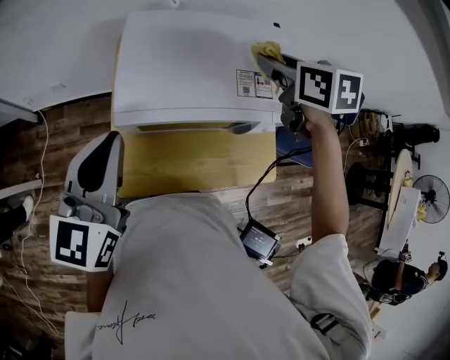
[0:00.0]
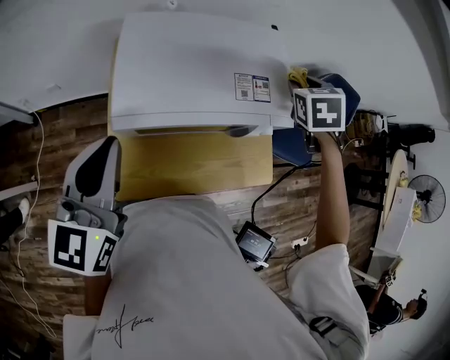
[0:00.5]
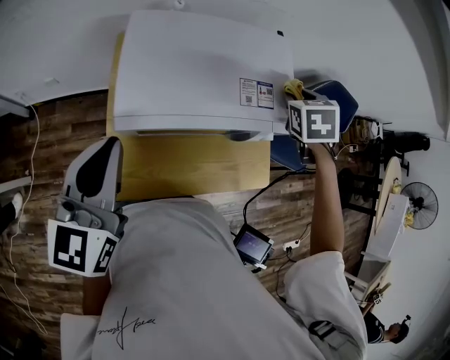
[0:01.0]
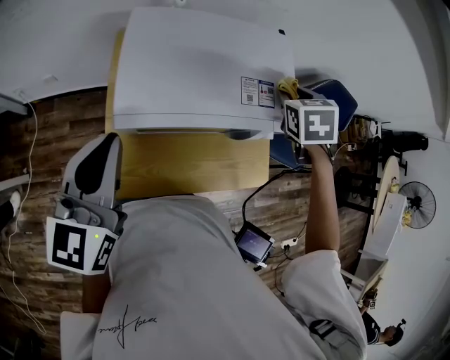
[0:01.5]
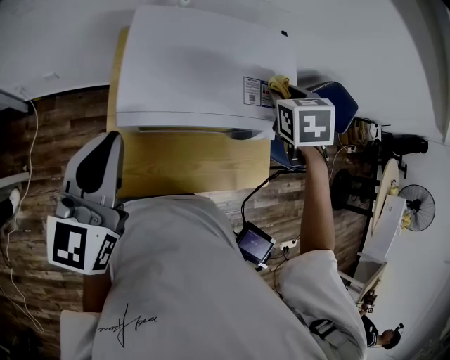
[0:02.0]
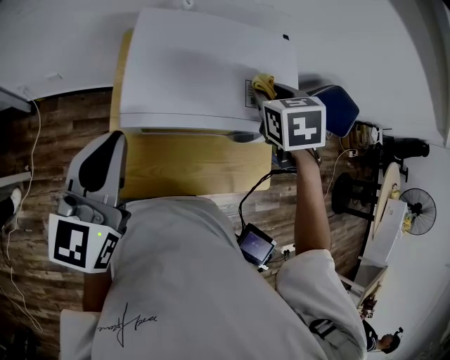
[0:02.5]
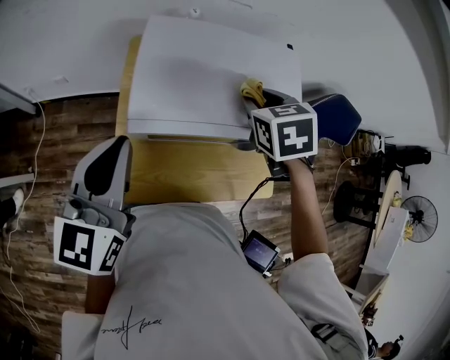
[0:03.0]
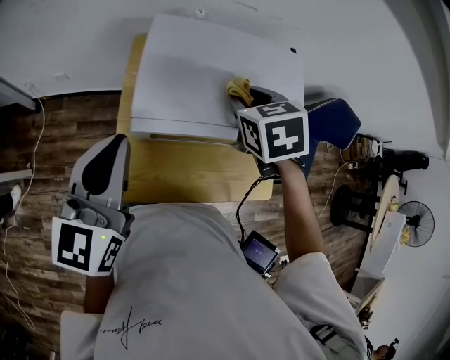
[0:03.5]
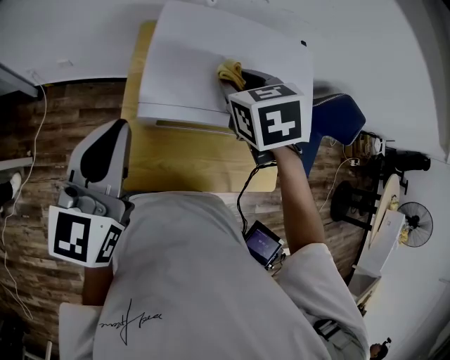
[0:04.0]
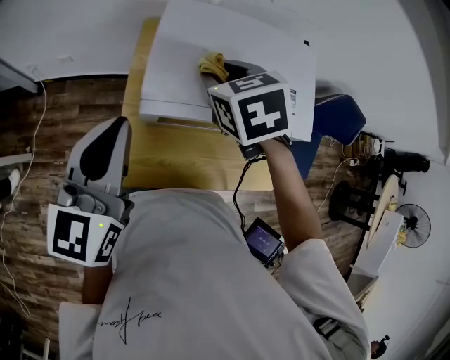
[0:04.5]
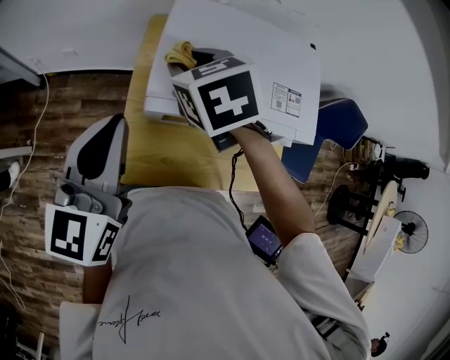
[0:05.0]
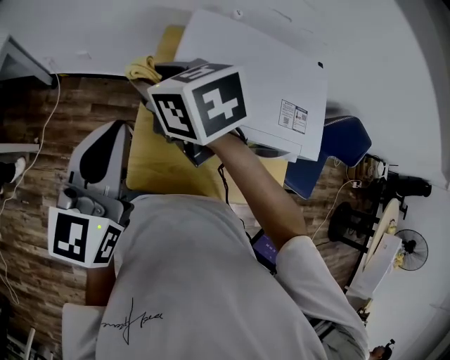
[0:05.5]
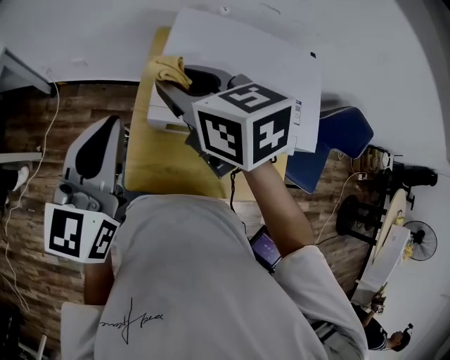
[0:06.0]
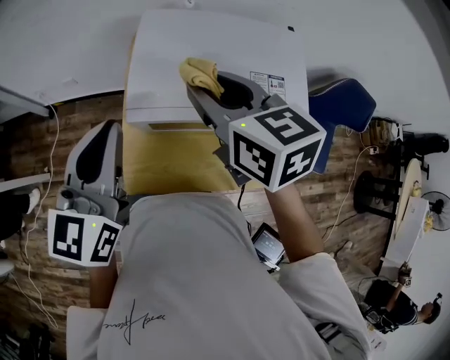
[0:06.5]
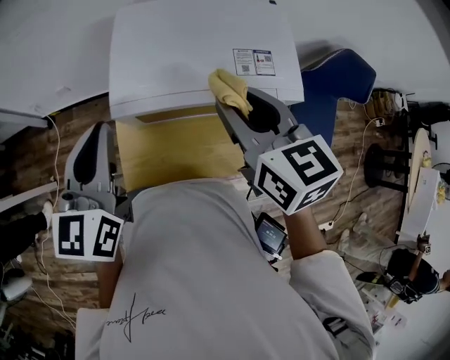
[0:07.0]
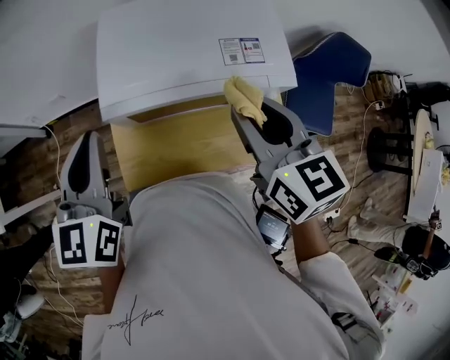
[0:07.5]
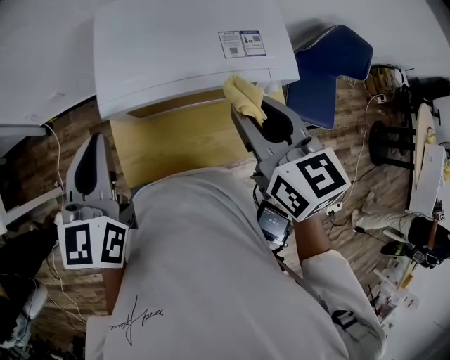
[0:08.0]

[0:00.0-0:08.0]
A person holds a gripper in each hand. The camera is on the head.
0.0 to 2.0 s: The right gripper is displaced downward and to the right by roughly 10 cm, and swivels roughly 30 degrees.
2.0 to 4.0 s: The right gripper heads to the left, covering some 20 cm.
4.0 to 6.0 s: The right gripper moves to the left, roughly 15 cm, and turns by approximately 30 degrees.
6.0 to 8.0 s: The right gripper goes approximately 25 cm to the right and backward, and changes its angle by roughly 30 degrees. Meanwhile the left gripper moves to the right, some 5 cm.

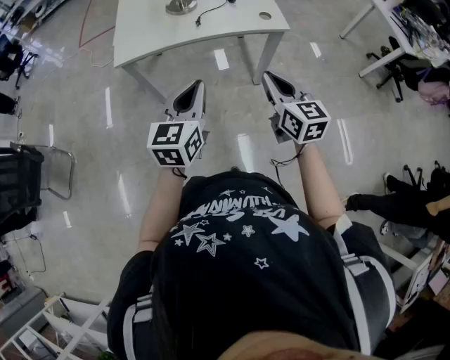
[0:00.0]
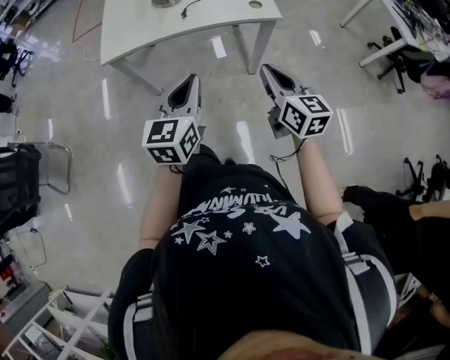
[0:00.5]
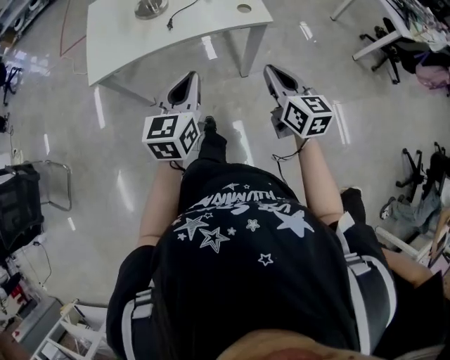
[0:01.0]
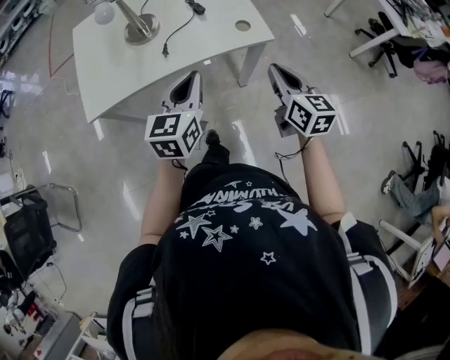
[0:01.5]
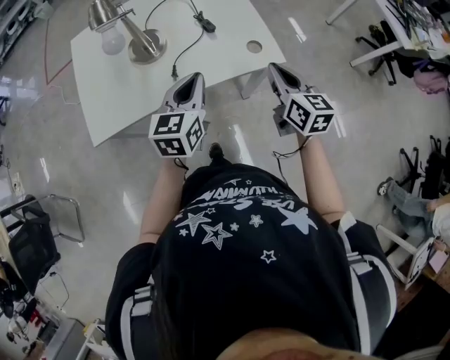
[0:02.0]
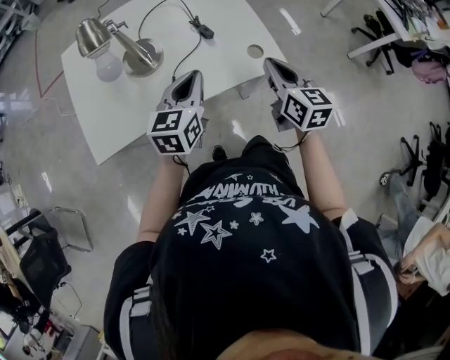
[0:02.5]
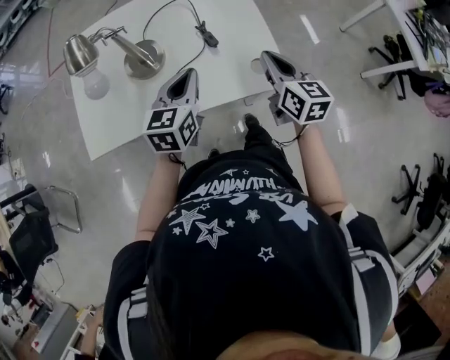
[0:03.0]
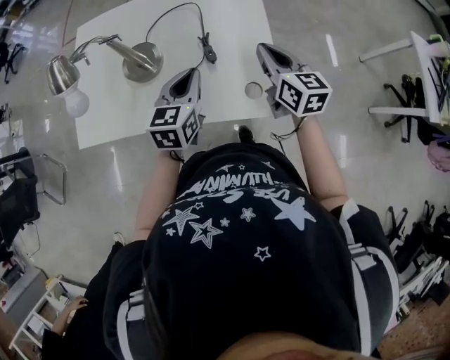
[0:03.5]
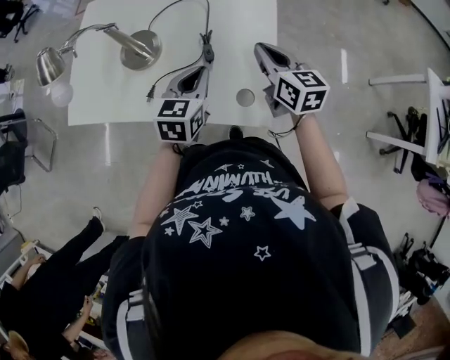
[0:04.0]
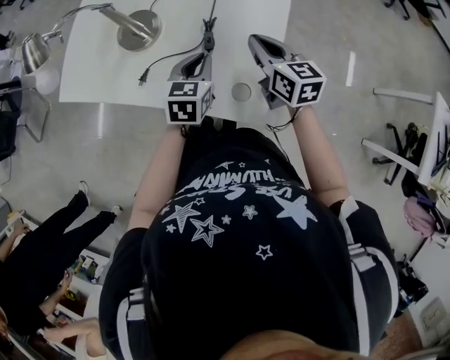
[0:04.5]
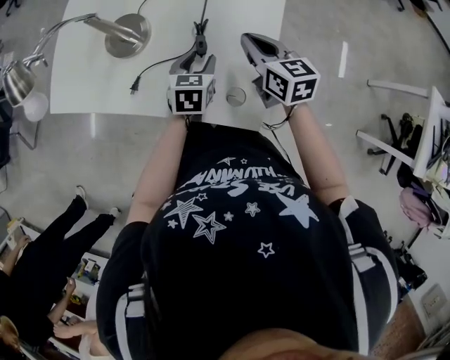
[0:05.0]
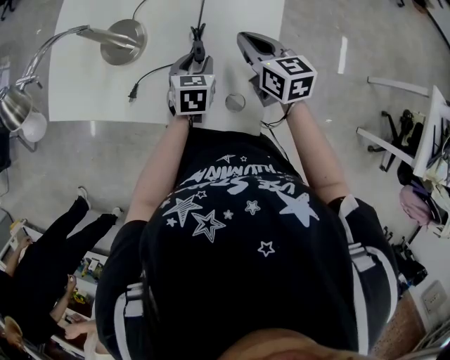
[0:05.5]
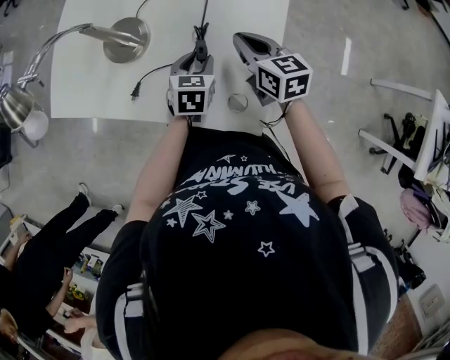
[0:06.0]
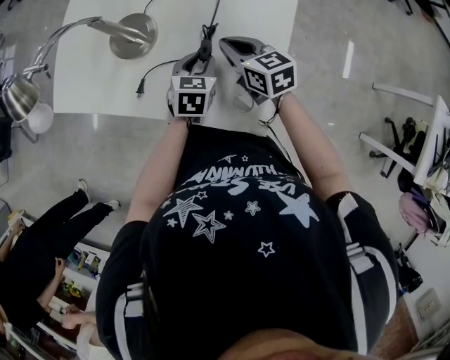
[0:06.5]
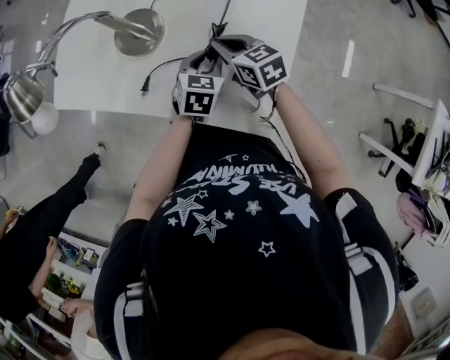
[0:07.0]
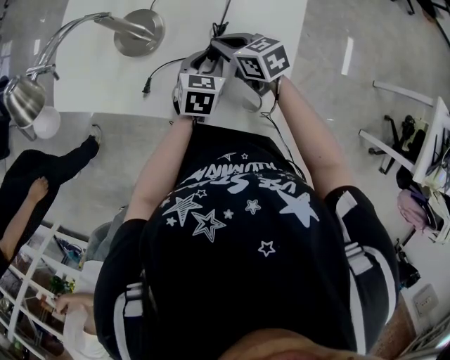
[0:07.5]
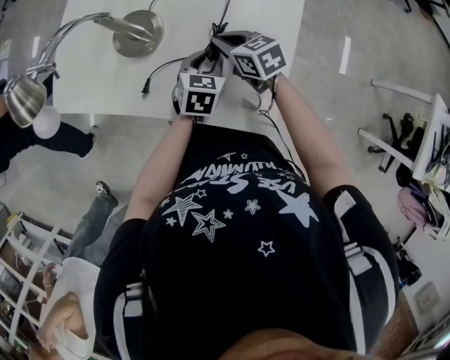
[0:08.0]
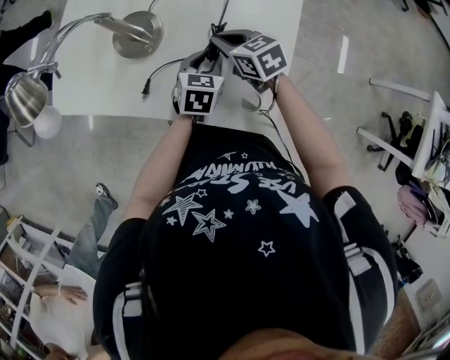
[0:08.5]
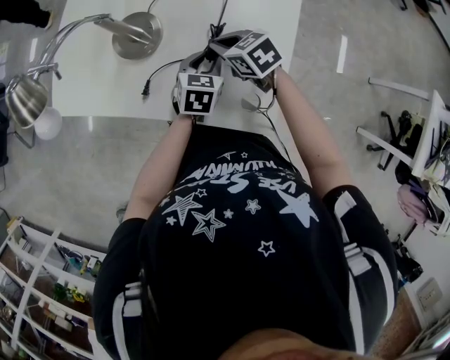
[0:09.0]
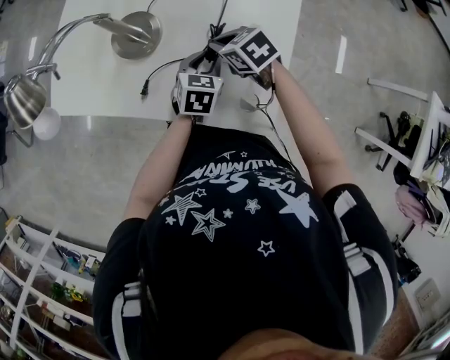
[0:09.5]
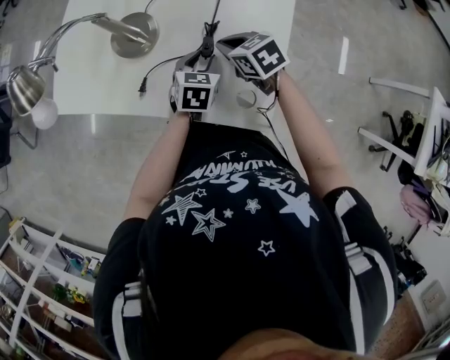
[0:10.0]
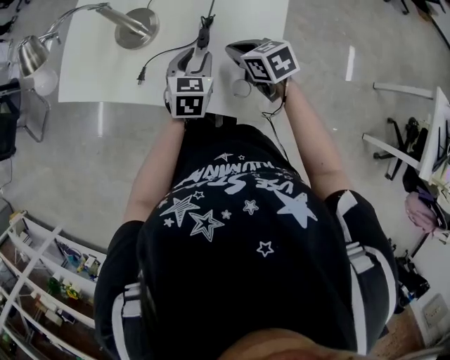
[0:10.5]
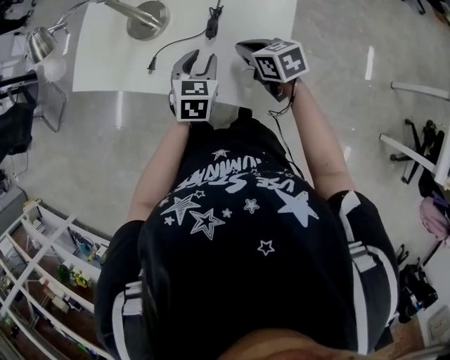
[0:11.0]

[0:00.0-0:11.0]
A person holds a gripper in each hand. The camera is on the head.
0.0 to 2.0 s: The two grippers go approximately 35 cm forward.
2.0 to 3.5 s: Both grippers travel together forward, roughly 20 cm.
3.5 to 5.5 s: The left gripper moves downward and forward, some 20 cm, turns by about 30 degrees, and opens its fingers; the right gripper heads forward and downward, covering roughly 15 cm, and swivels about 20 degrees.
5.5 to 7.5 s: The right gripper is displaced to the left and downward by some 15 cm, and changes its angle by some 20 degrees.
7.5 to 9.0 s: The grippers stay close to where they were, moving slightly.
9.0 to 11.0 s: The left gripper travels backward and upward by approximately 10 cm. Meanwhile the right gripper travels backward by about 10 cm.

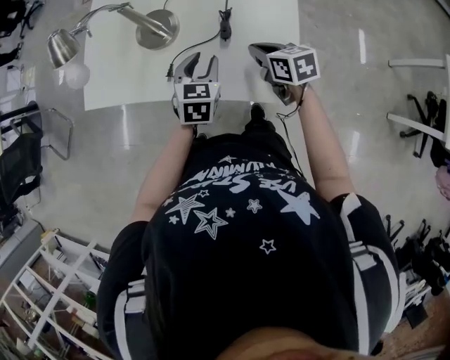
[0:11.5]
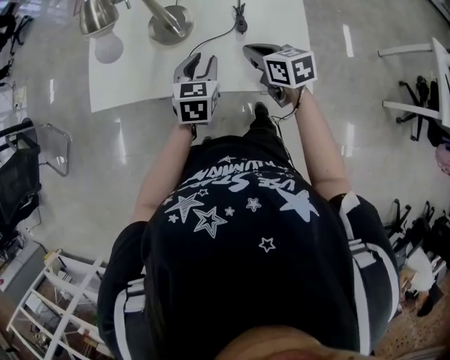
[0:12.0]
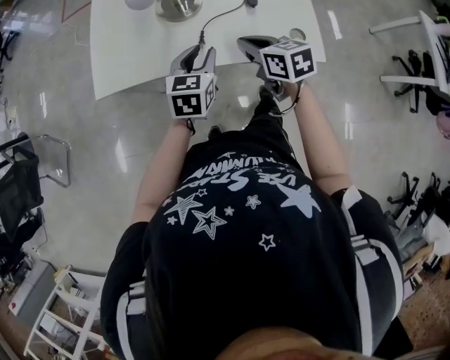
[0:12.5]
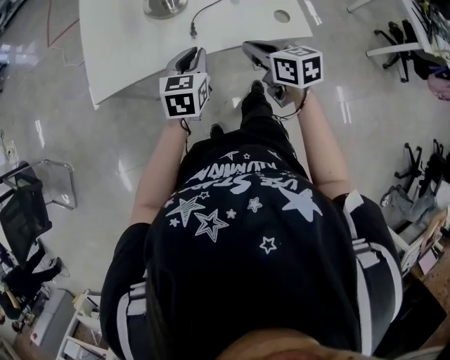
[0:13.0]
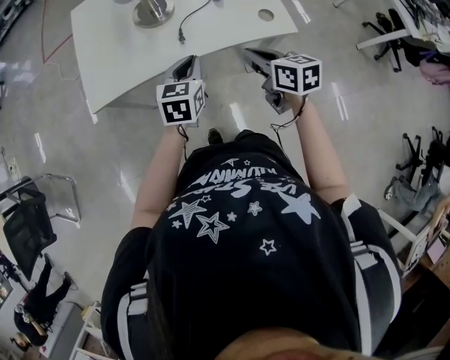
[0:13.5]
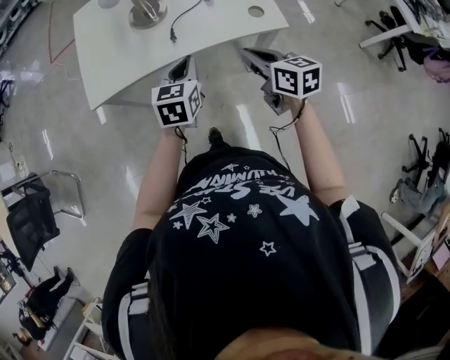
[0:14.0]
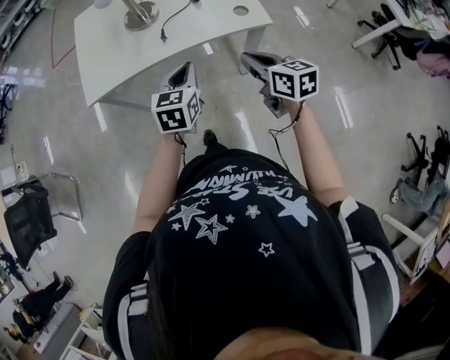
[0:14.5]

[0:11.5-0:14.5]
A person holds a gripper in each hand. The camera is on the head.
11.5 to 13.0 s: The two grippers go about 20 cm to the left and backward. The right gripper rotates approximately 20 degrees, while the left gripper changes its angle by about 20 degrees.
13.0 to 14.5 s: Both grippers move backward and to the right, some 15 cm.

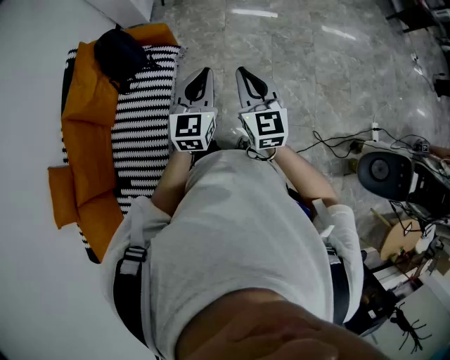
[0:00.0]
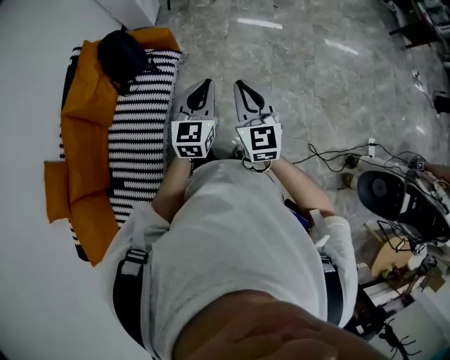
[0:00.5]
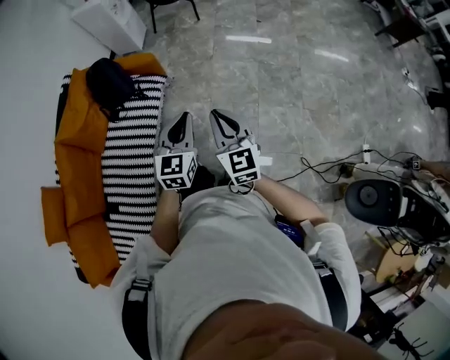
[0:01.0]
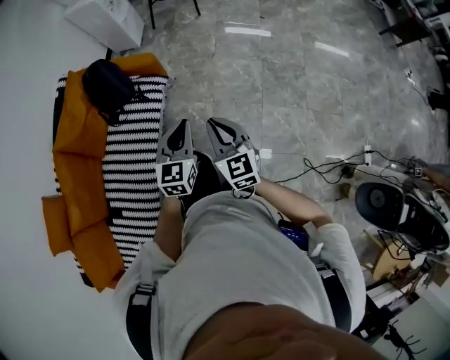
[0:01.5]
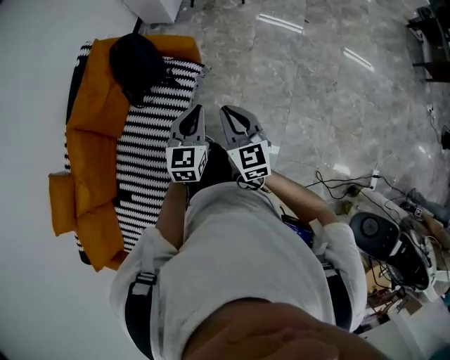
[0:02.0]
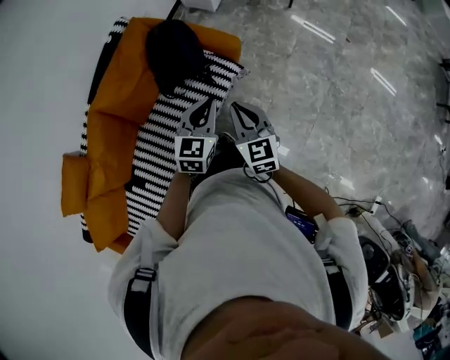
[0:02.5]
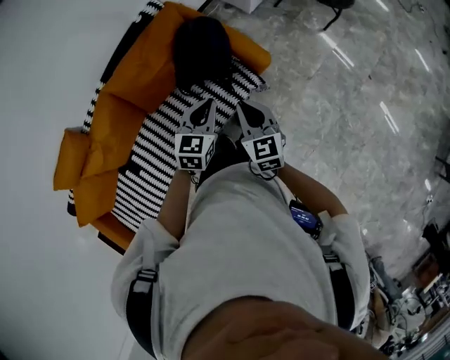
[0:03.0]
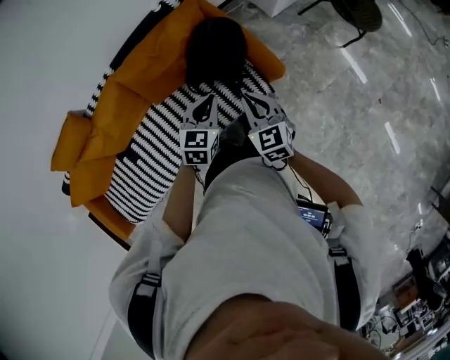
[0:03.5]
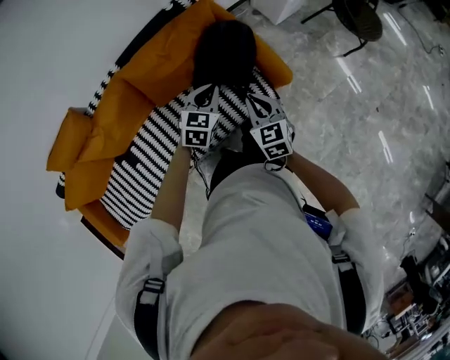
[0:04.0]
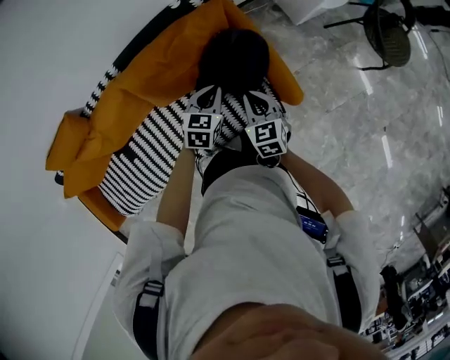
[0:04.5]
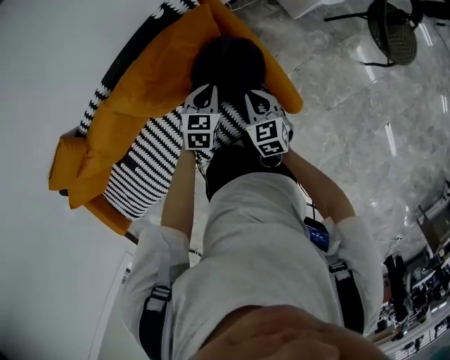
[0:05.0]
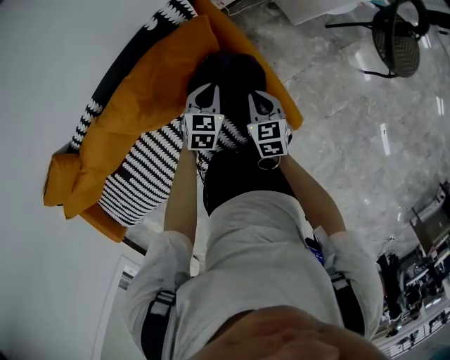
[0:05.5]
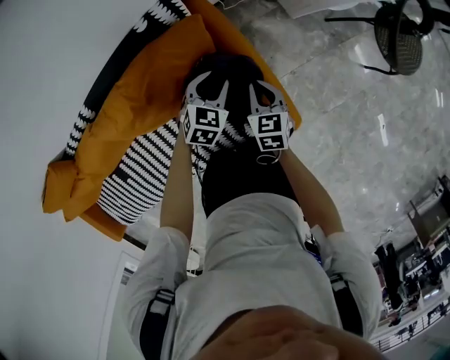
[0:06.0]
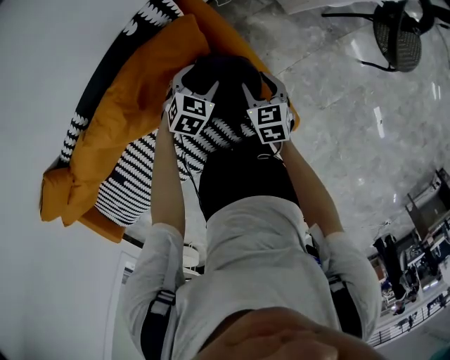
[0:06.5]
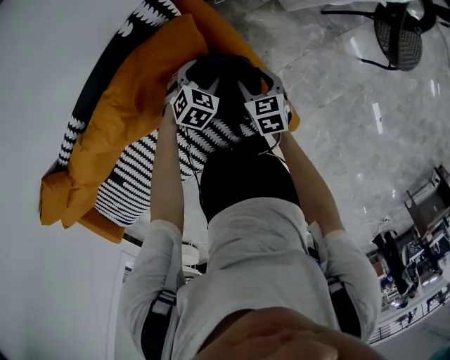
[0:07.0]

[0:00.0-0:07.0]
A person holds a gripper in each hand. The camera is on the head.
0.0 to 2.0 s: Both grippers travel together forward, to the left and downward, roughly 25 cm.
2.0 to 3.5 s: The right gripper moves roughly 35 cm, and rotates some 40 degrees. Meanwhile the left gripper changes place by about 35 cm, and swivels roughly 30 degrees.
3.5 to 5.0 s: Both grippers move forward and downward, about 30 cm.
5.0 to 7.0 s: Both grippers travel together downward and forward, approximately 20 cm. The right gripper opens up. Meanwhile the left gripper changes its angle by roughly 30 degrees, and opens.
